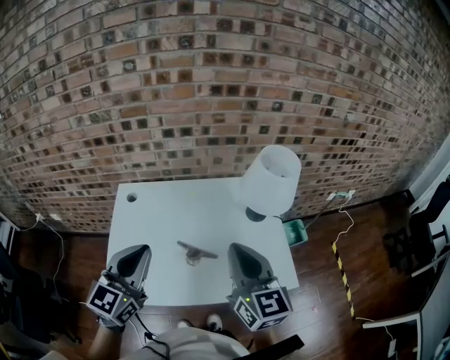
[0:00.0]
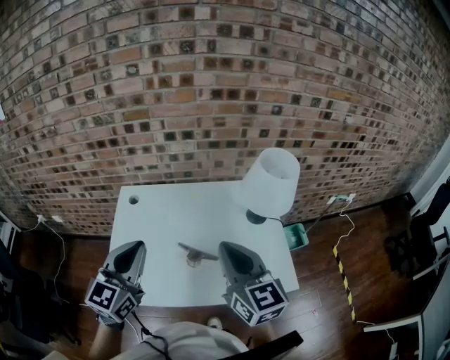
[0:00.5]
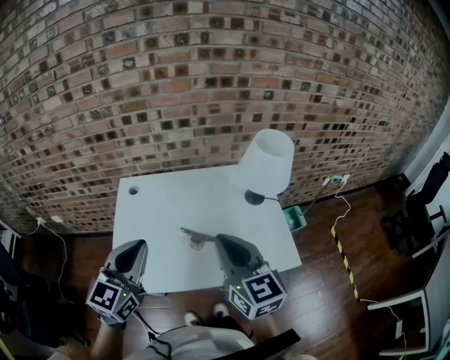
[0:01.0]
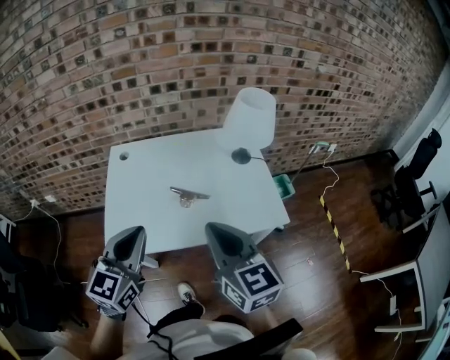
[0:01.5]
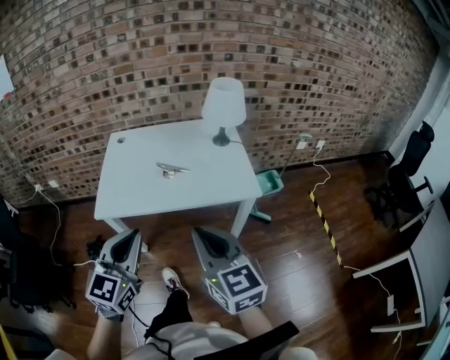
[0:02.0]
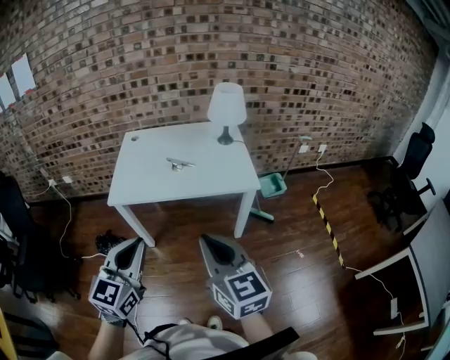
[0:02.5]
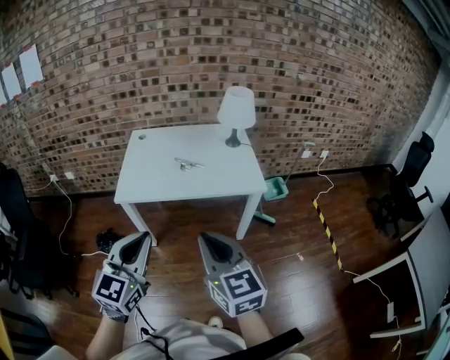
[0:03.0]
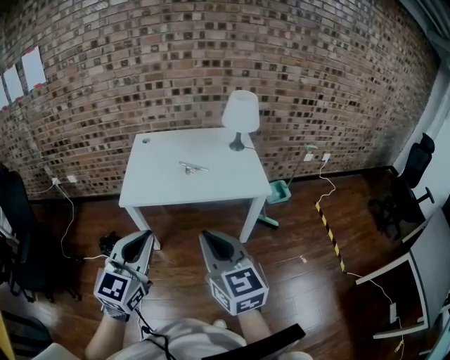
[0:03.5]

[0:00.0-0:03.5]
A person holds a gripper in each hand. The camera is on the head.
0:00.0 to 0:02.0: Both grippers travel together backward, some 35 cm.
0:02.0 to 0:03.5: The left gripper moves backward, approximately 10 cm; the right gripper goes some 15 cm backward and to the left.

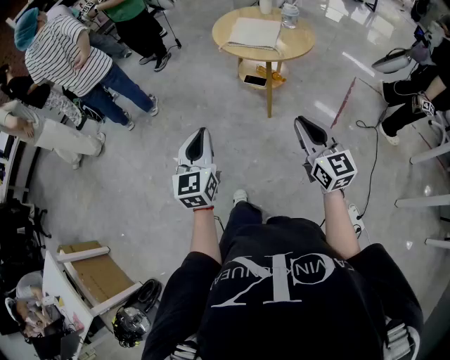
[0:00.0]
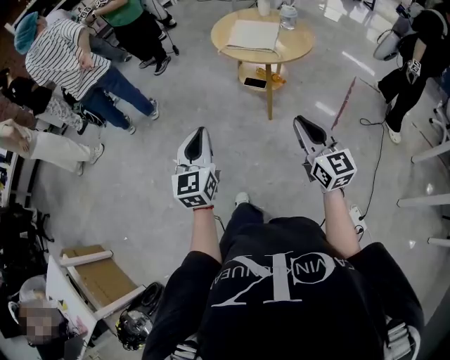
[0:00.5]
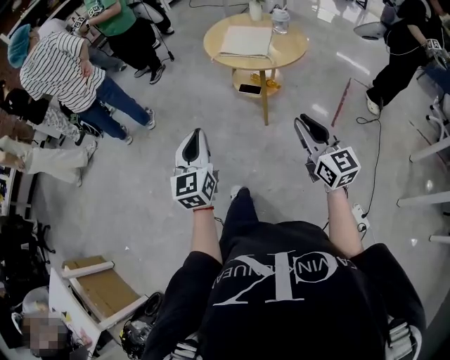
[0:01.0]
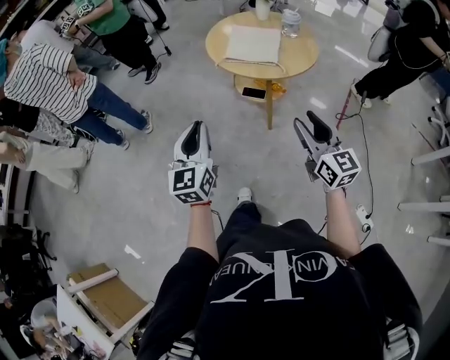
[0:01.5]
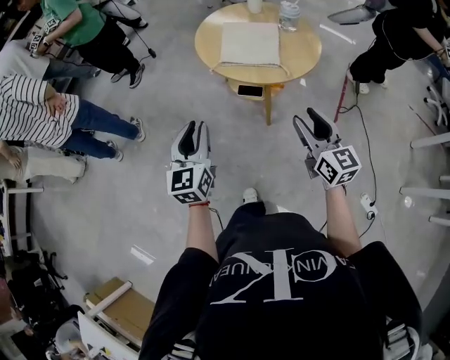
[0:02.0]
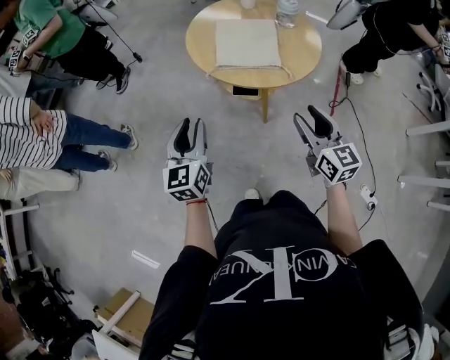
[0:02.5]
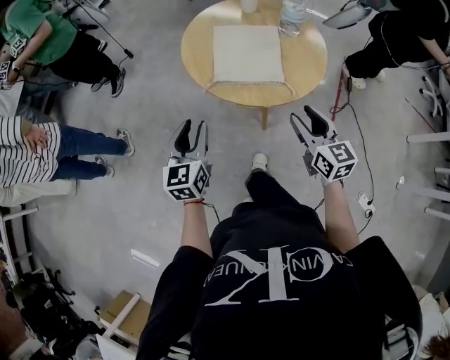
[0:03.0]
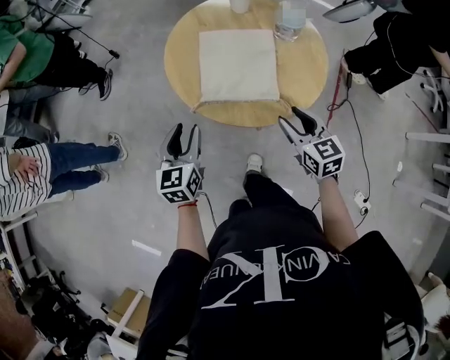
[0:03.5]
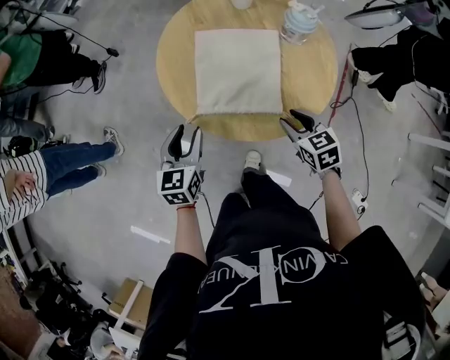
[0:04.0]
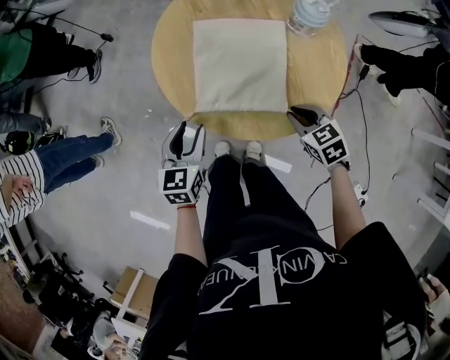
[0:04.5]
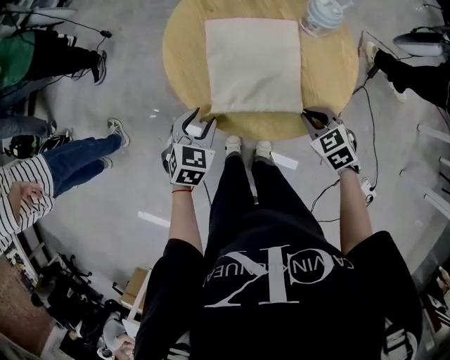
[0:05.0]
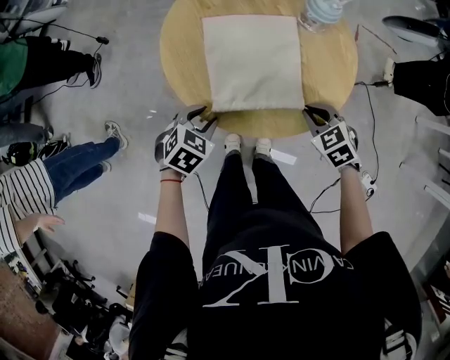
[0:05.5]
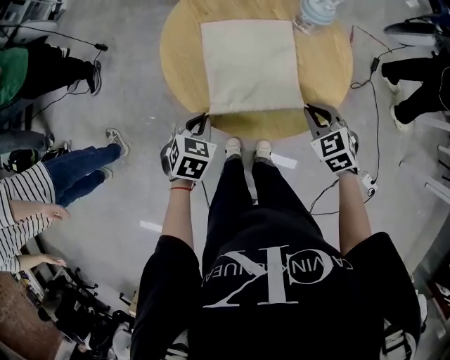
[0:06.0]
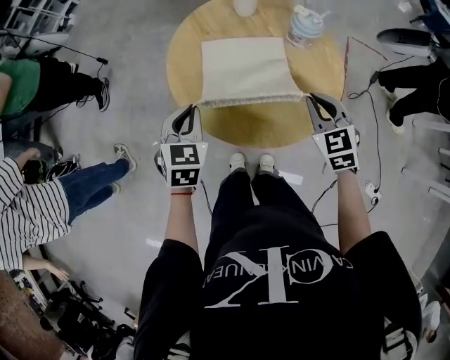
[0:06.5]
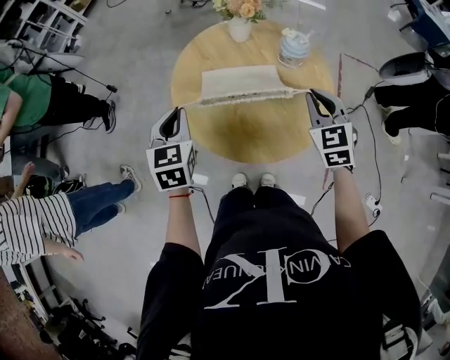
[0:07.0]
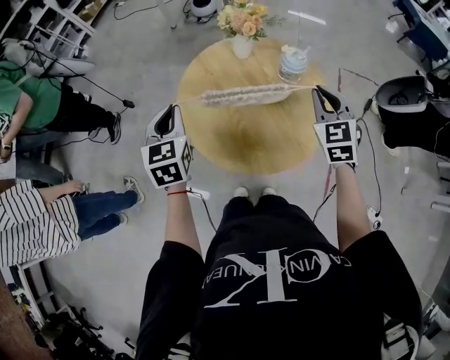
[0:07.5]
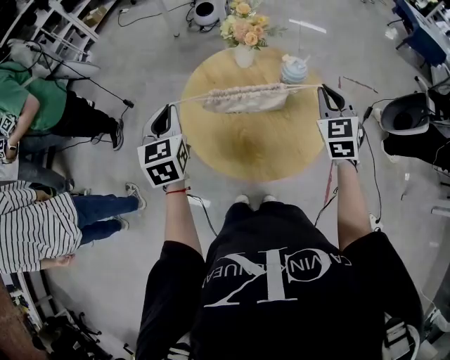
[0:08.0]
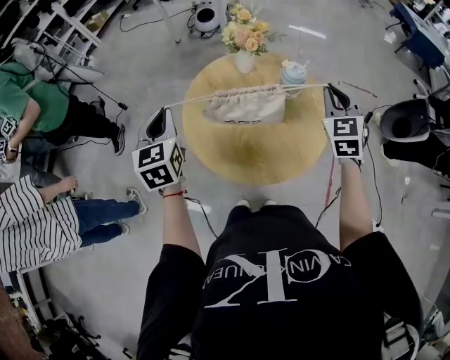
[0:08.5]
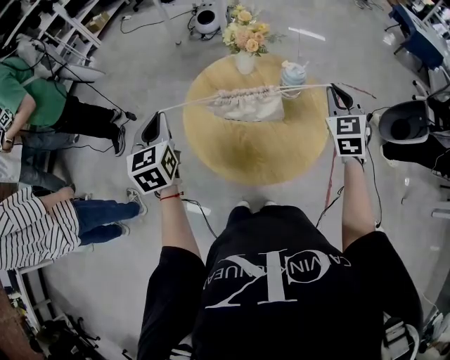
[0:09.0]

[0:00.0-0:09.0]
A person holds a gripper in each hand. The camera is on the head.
0:00.0 to 0:02.0: Both grippers travel together forward, roughly 25 cm. The right gripper opens its fingers.
0:02.0 to 0:04.5: Both grippers move forward and downward, some 35 cm. The right gripper tips its fingers downward by roughly 40 degrees, and closes its fingers. Meanwhile the left gripper changes its angle by some 30 degrees, and opens up.
0:04.5 to 0:07.0: Both grippers move upward and forward, some 20 cm. The right gripper changes its angle by about 40 degrees. Meanwhile the left gripper closes its fingers.
0:07.0 to 0:09.0: The left gripper heads upward and to the left, covering some 10 cm. The right gripper moves upward, to the right and forward, about 10 cm.

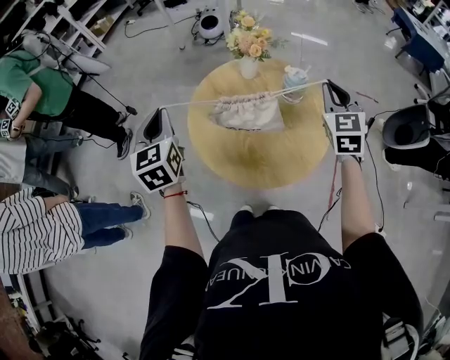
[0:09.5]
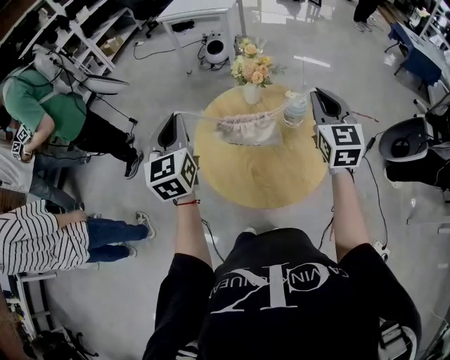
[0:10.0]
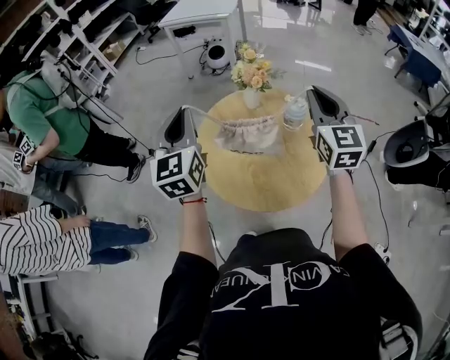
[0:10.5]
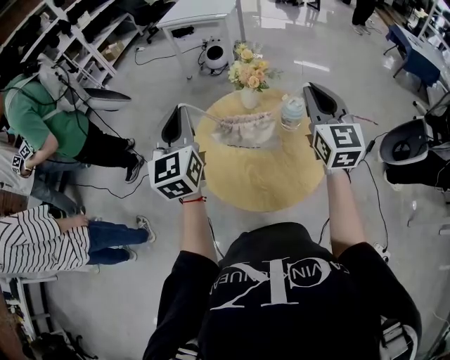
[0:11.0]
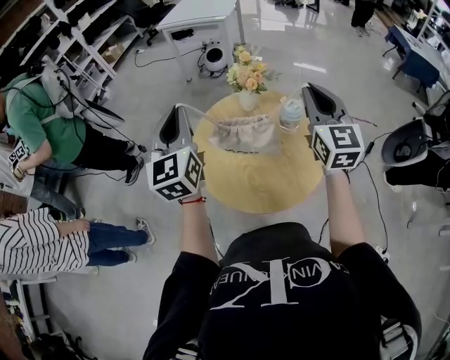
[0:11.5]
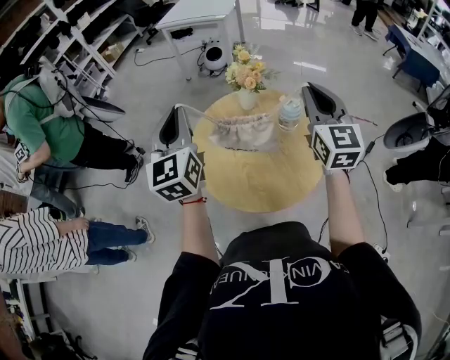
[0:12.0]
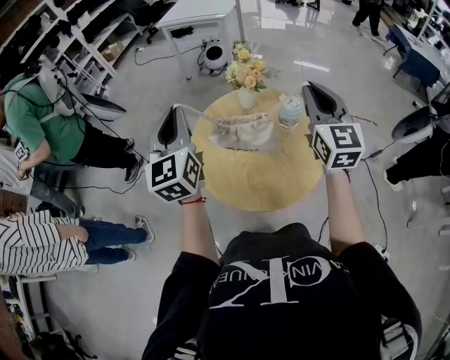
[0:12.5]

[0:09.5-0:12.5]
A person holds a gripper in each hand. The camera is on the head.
0:09.5 to 0:11.0: The right gripper travels upward by some 10 cm, and rotates approximately 30 degrees; the left gripper goes roughly 10 cm upward and to the right.
0:11.0 to 0:12.5: Neither gripper changes place.

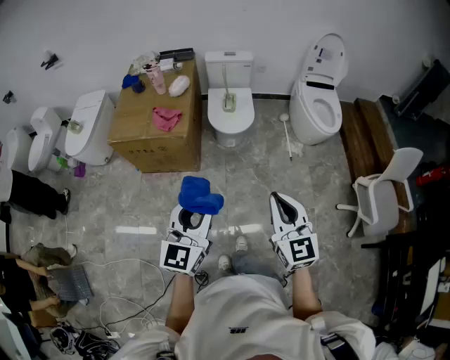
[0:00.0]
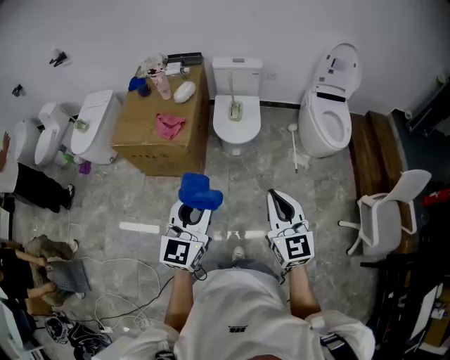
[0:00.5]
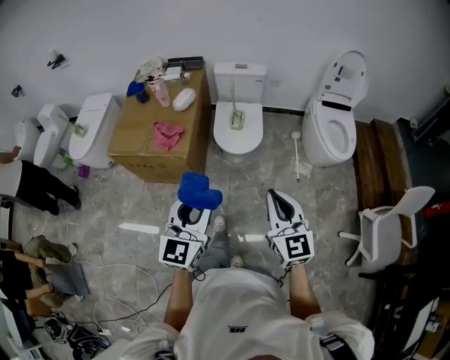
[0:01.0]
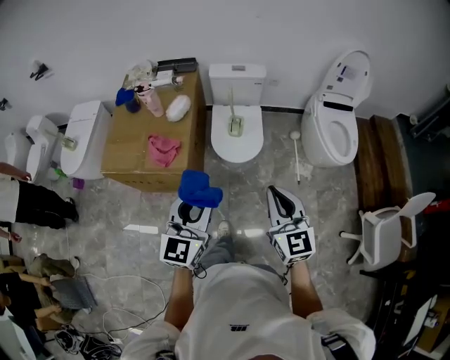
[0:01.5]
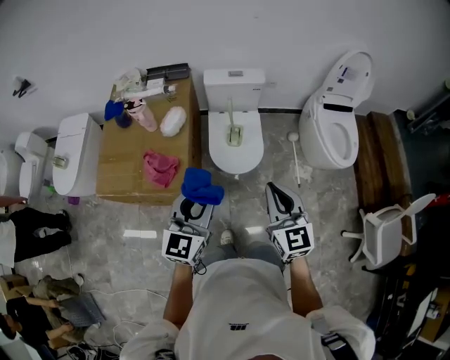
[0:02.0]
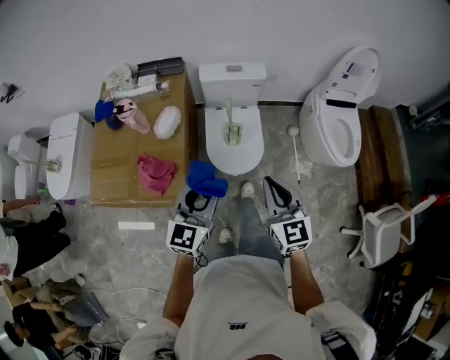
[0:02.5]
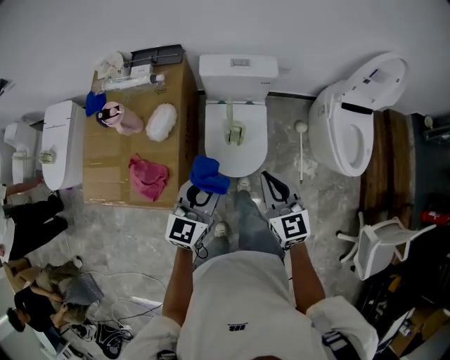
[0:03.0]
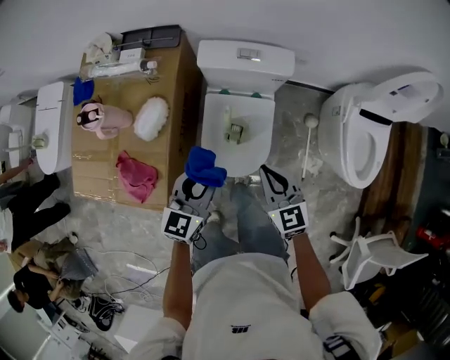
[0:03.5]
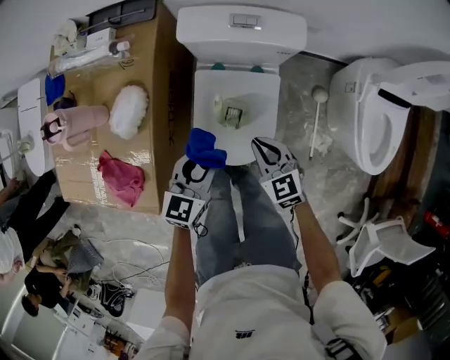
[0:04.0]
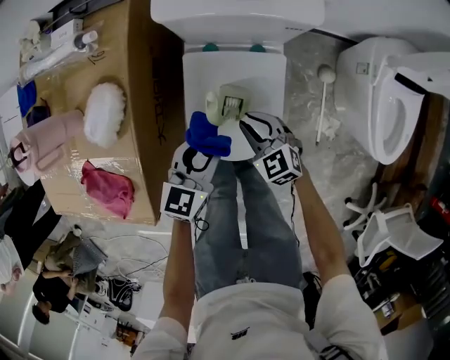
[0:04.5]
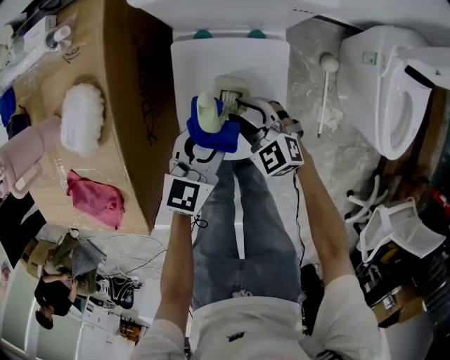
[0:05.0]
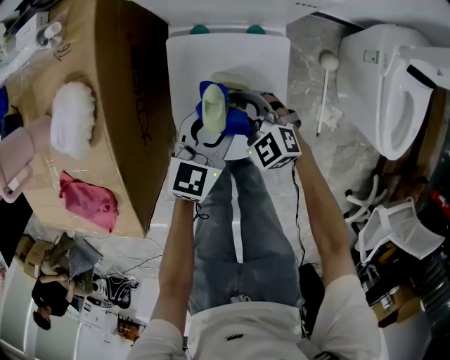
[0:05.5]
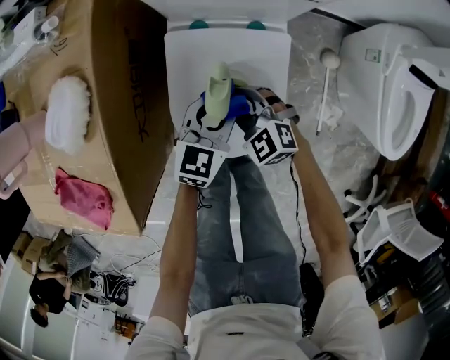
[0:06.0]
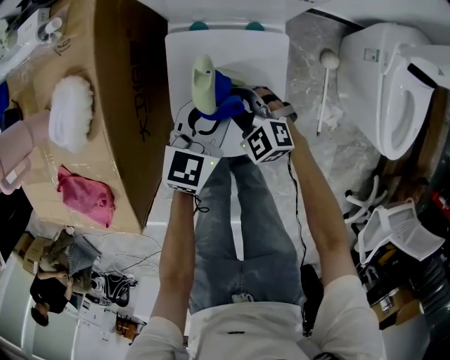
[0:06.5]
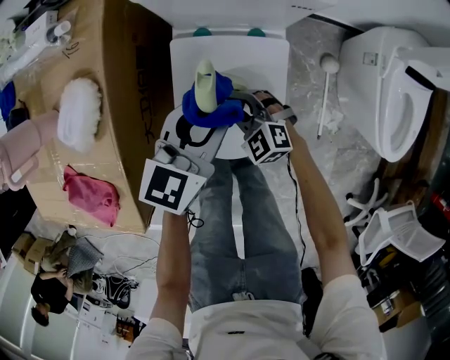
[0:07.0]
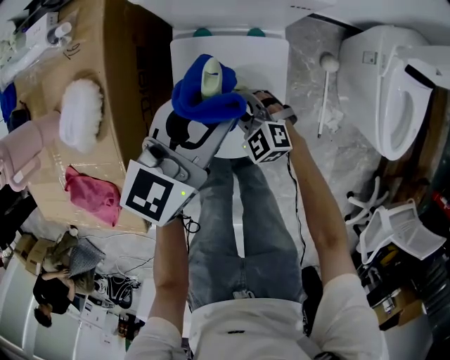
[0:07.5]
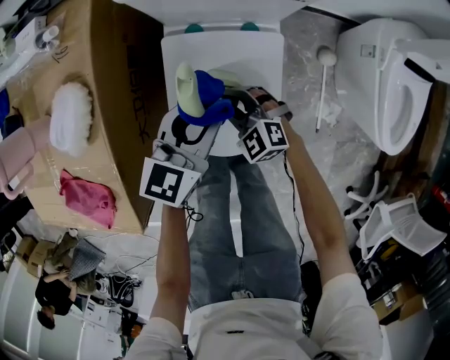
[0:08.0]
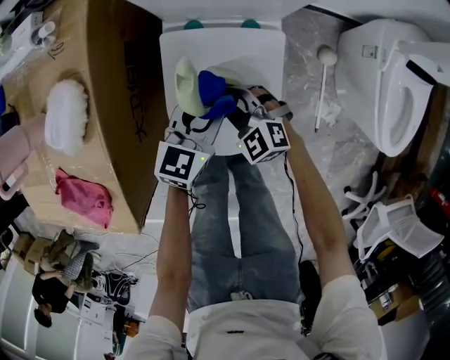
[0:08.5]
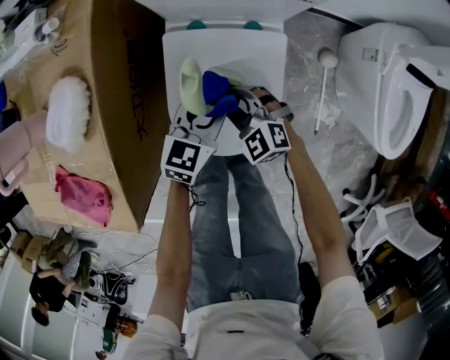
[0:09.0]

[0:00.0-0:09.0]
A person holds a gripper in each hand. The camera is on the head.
0:00.0 to 0:02.0: The two grippers travel together, forward, some 40 cm.
0:02.0 to 0:04.5: The grippers both shift downward and forward by approximately 60 cm. The right gripper tilts its fingers some 30 degrees downward, while the left gripper changes its angle by roughly 30 degrees.
0:04.5 to 0:07.0: The left gripper is displaced forward by about 5 cm, and moves about 10 cm downward and comes back. Meanwhile the right gripper goes about 10 cm downward, and rotates about 20 degrees.
0:07.0 to 0:09.0: The left gripper shifts about 15 cm downward.

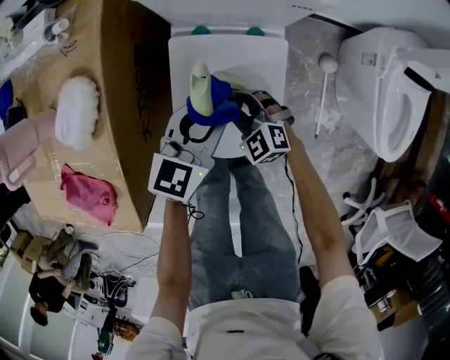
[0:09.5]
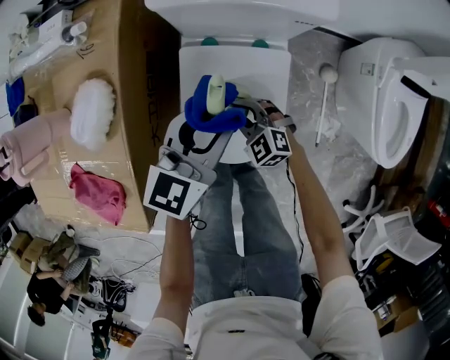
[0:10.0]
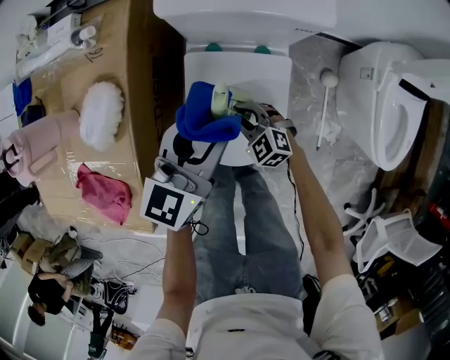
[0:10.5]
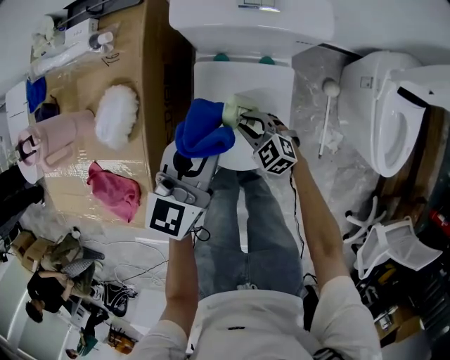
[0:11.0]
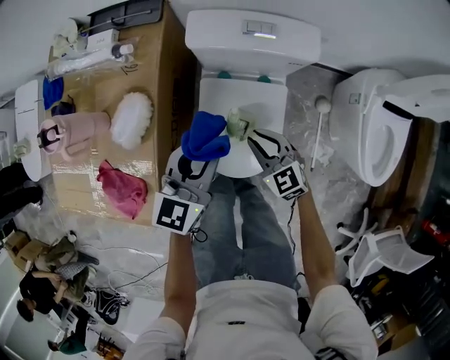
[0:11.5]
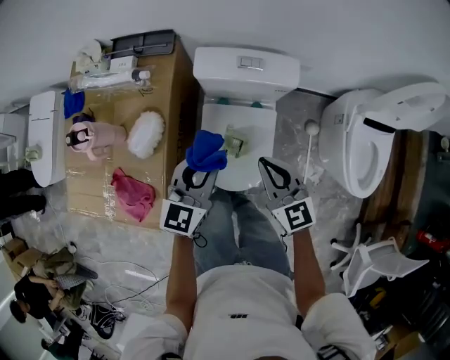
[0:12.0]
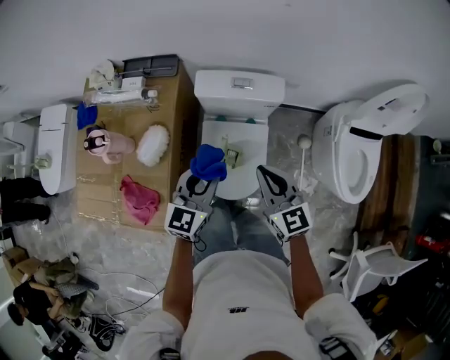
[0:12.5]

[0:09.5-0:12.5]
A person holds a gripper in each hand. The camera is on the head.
0:09.5 to 0:11.0: The left gripper is displaced upward and to the left by some 15 cm.
0:11.0 to 0:12.5: The left gripper heads upward, covering about 15 cm; the right gripper moves upward, roughly 40 cm, changes its angle by approximately 40 degrees, and closes its fingers.
